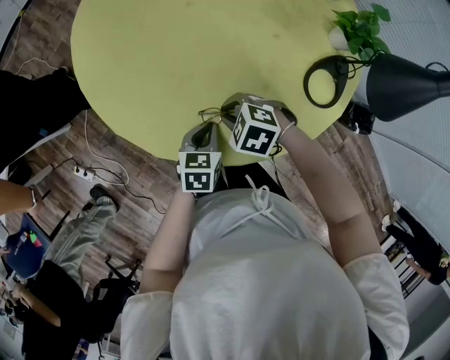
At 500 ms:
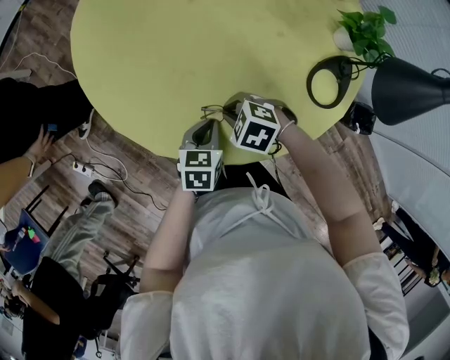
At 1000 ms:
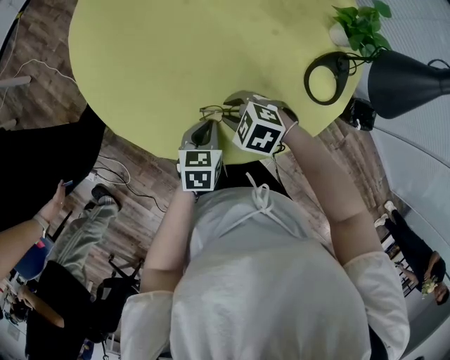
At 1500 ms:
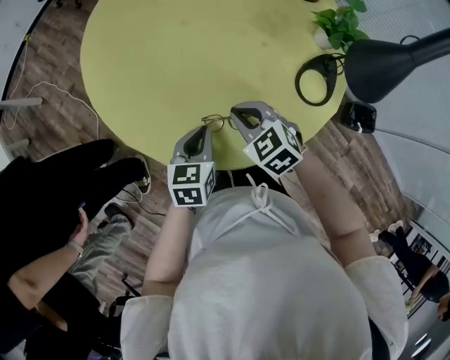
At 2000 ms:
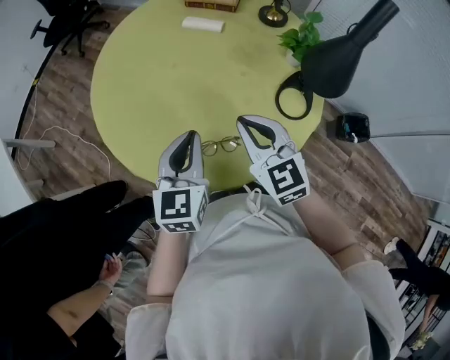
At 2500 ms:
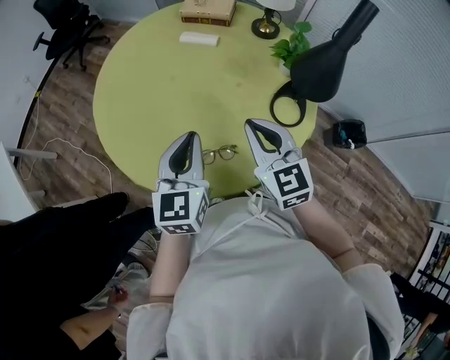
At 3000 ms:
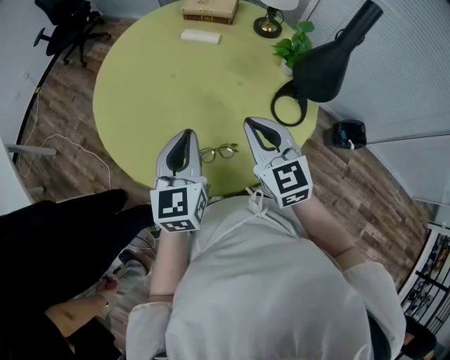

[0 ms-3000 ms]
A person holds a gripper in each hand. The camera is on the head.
0 ms to 1500 ms: The two grippers go roughly 10 cm upward. The right gripper turns by approximately 30 degrees.
1500 ms to 3000 ms: The left gripper travels upward by some 20 cm, and rotates about 30 degrees. Meanwhile the right gripper shifts about 20 cm upward and to the right, and turns by about 40 degrees.

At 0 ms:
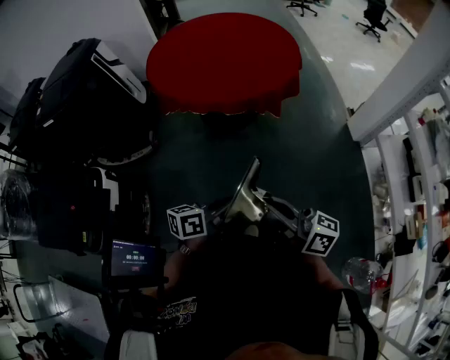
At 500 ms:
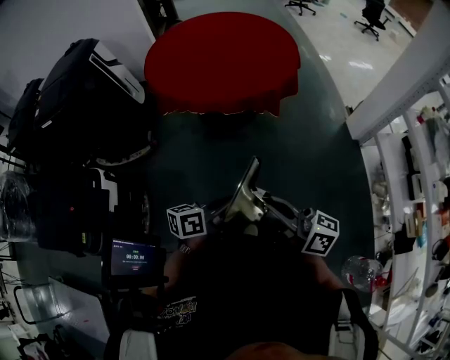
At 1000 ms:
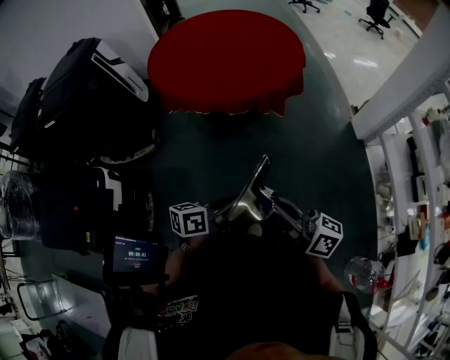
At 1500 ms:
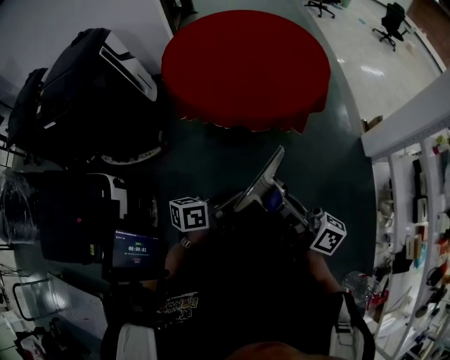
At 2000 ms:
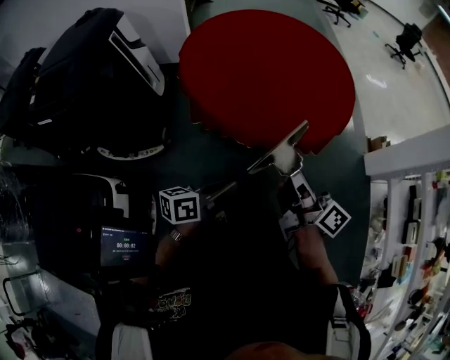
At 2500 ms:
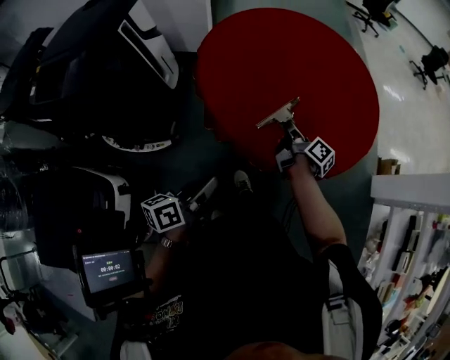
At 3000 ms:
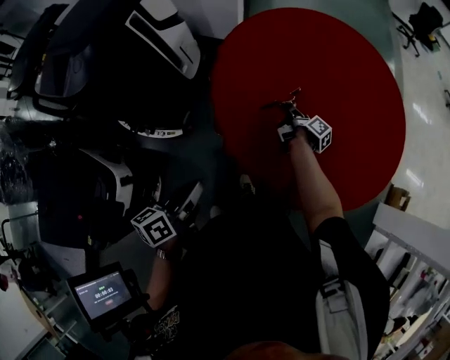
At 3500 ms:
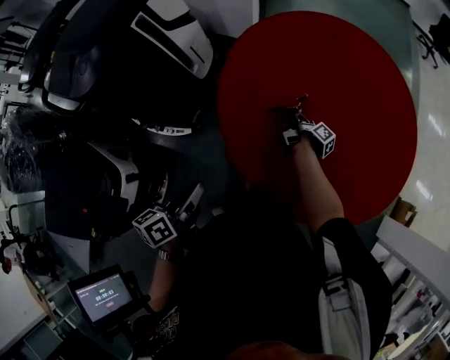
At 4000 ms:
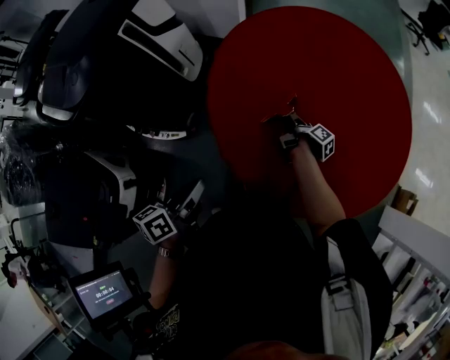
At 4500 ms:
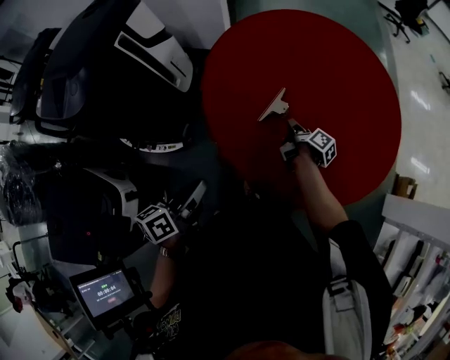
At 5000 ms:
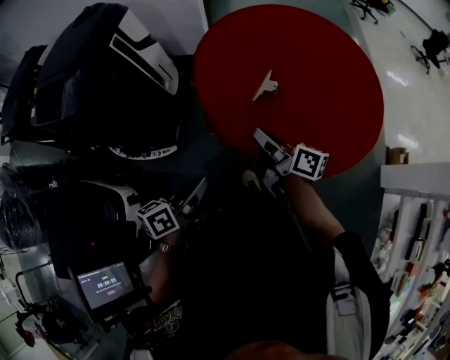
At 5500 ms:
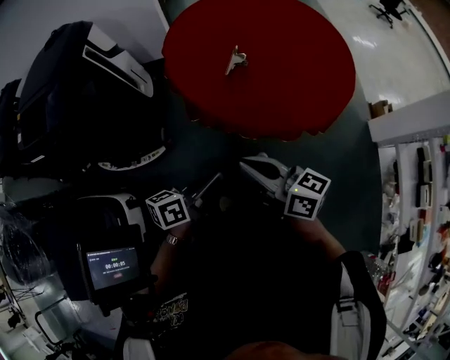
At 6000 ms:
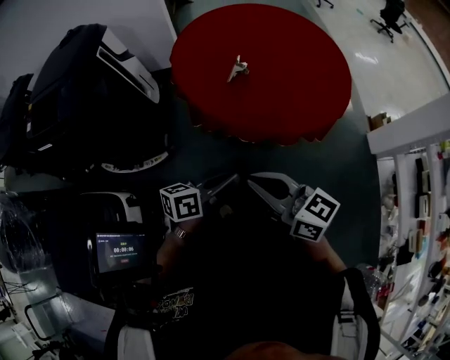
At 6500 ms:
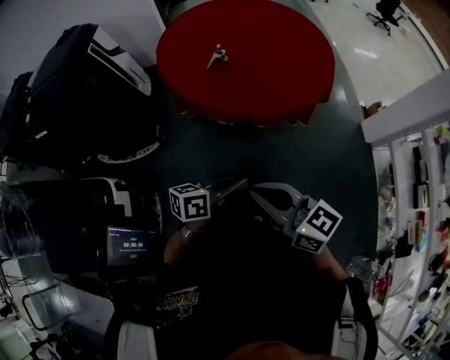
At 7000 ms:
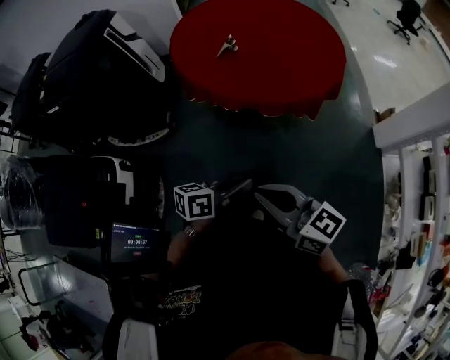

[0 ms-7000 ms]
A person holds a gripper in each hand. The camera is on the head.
0 ms to 2000 ms: The grippers both shift forward and to the left by about 35 cm.
2000 ms to 3500 ms: The right gripper shifts some 60 cm forward and downward, and tilts its fingers roughly 30 degrees downward, while the left gripper goes approximately 25 cm forward and to the left, and changes its angle by some 40 degrees.
3500 ms to 5000 ms: The left gripper moves backward, some 10 cm, and turns by about 20 degrees. The right gripper travels upward and backward by roughly 40 cm, turns by approximately 50 degrees, and opens, then closes again.
5000 ms to 7000 ms: The left gripper heads backward and to the right, covering some 35 cm, and turns by about 20 degrees; the right gripper is displaced backward by approximately 40 cm, and rotates about 30 degrees.

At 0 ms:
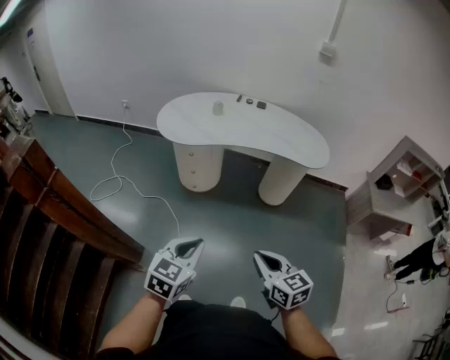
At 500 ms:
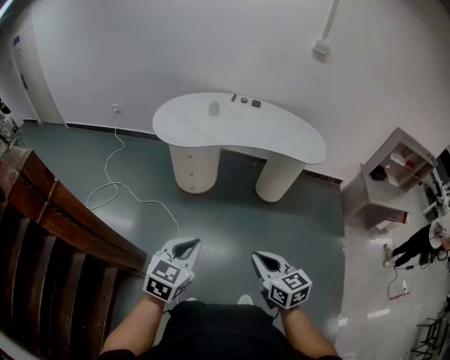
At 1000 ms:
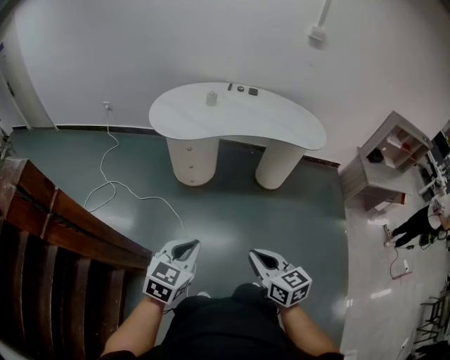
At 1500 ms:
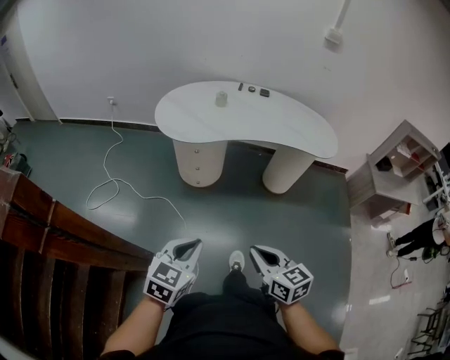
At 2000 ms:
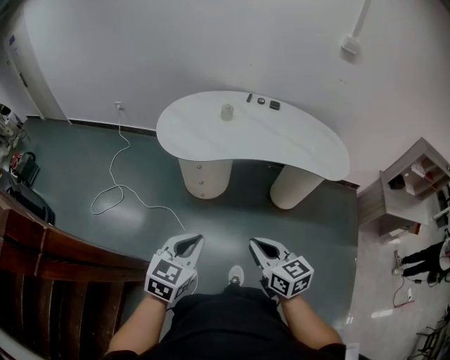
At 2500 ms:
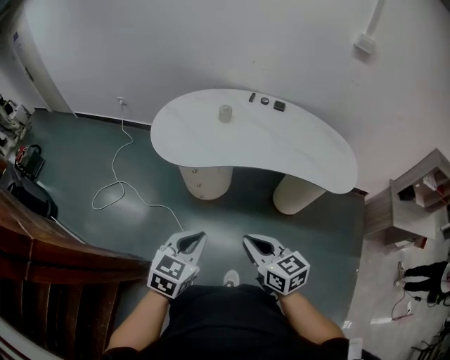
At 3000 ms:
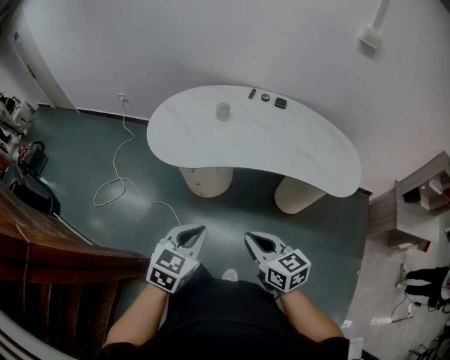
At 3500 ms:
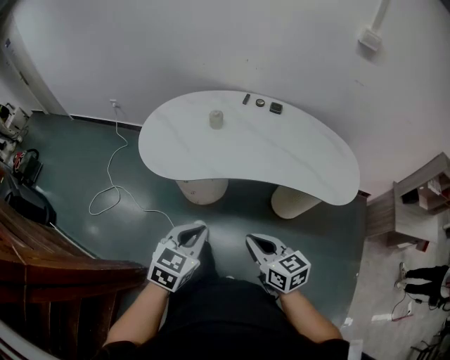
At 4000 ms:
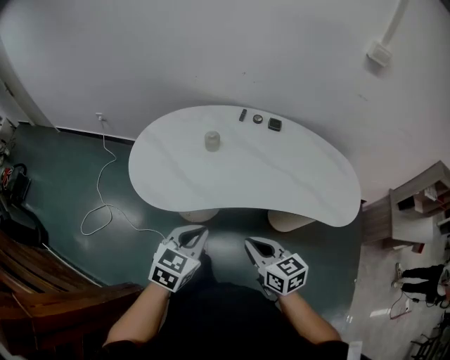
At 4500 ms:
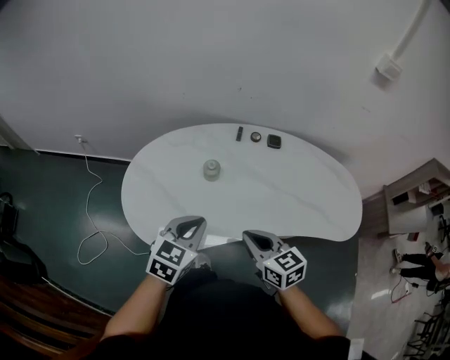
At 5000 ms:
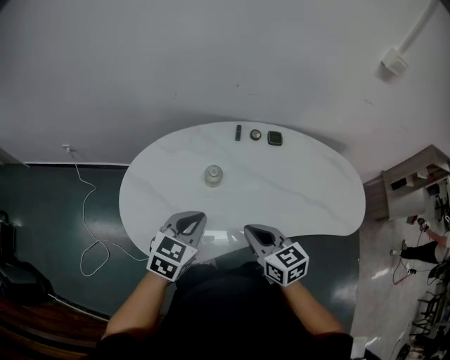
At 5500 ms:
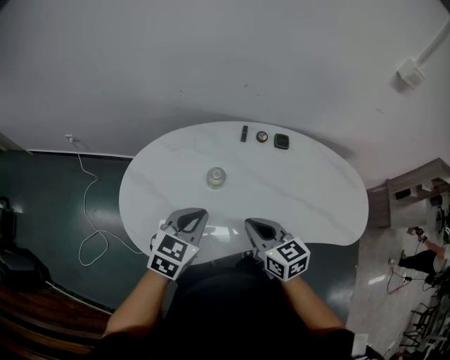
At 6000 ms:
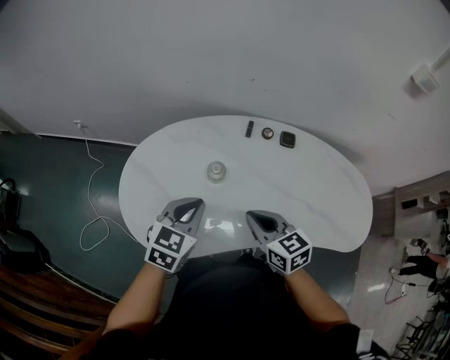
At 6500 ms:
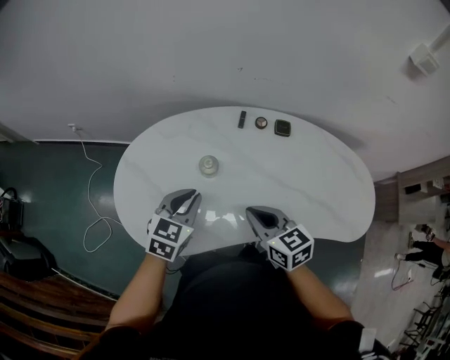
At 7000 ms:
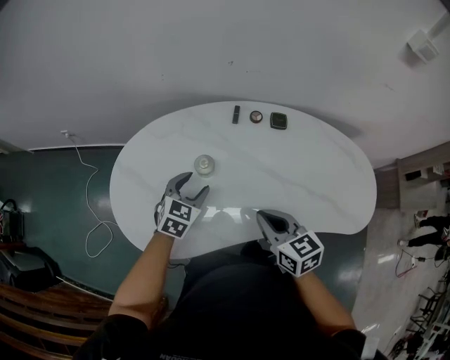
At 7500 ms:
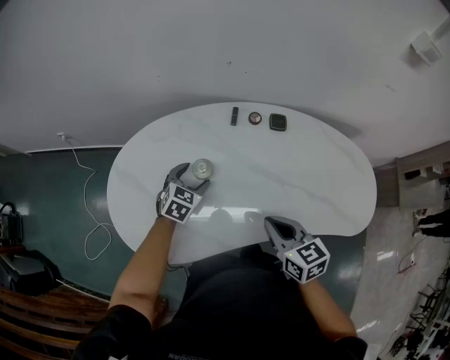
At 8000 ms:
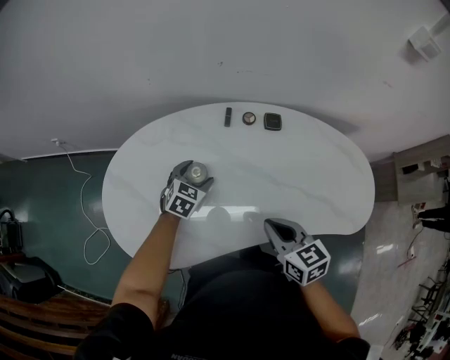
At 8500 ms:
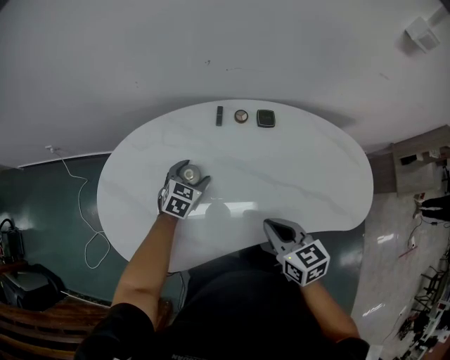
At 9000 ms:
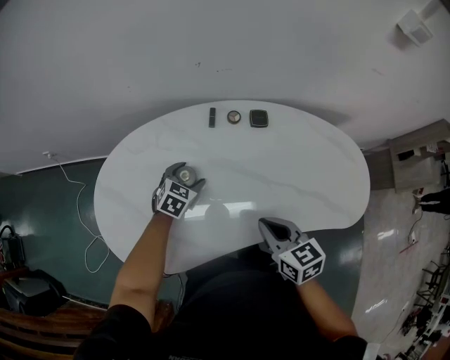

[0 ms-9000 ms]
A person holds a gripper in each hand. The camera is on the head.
0 ms to 2000 ms: Both grippers travel together forward and to the left, some 20 cm.
2000 ms to 4500 ms: Both grippers are carried forward, roughly 50 cm.
4500 ms to 7000 ms: The left gripper travels forward and downward by some 20 cm, and opens up; the right gripper travels forward and to the right by about 10 cm.
7000 ms to 9000 ms: The right gripper changes place by roughly 5 cm. The left gripper shifts approximately 10 cm forward and downward.

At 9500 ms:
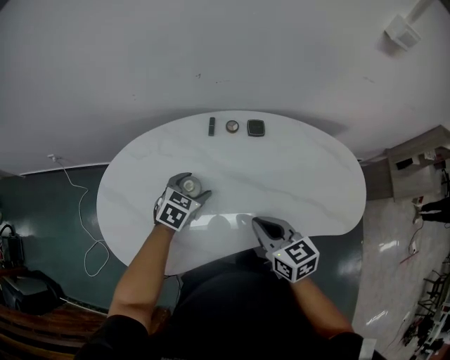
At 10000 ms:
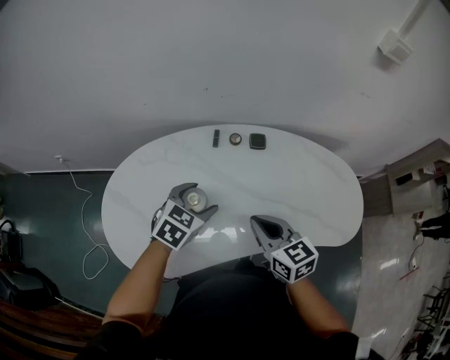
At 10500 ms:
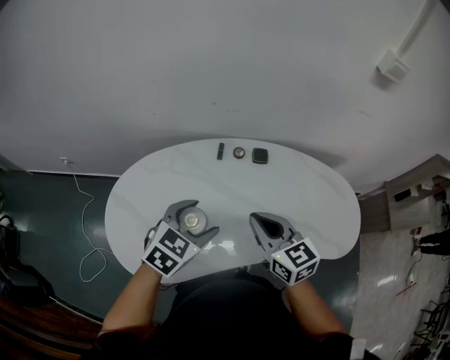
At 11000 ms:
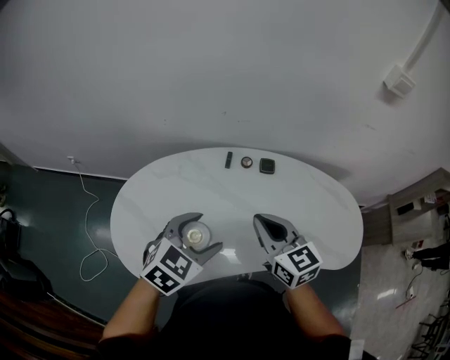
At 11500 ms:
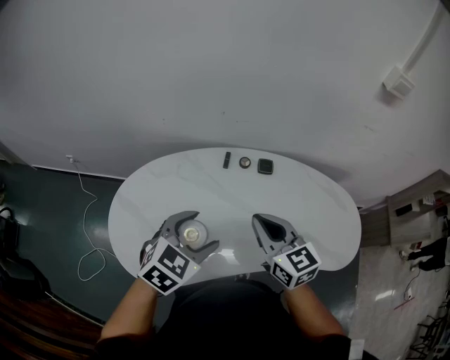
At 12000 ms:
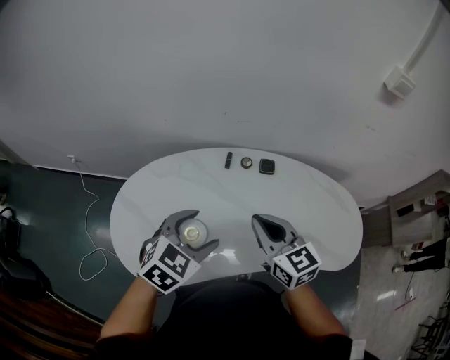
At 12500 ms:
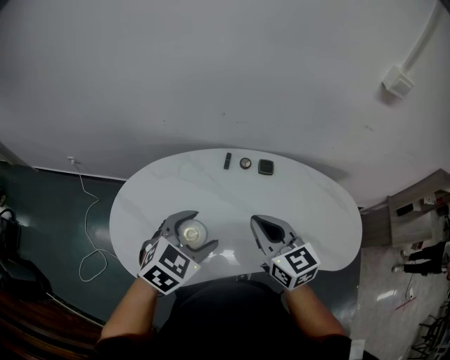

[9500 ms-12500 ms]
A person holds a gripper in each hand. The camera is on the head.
9500 ms to 11000 ms: The right gripper moves upward, roughly 10 cm; the left gripper heads upward and backward, covering some 20 cm.
11000 ms to 12500 ms: Neither gripper changes place.

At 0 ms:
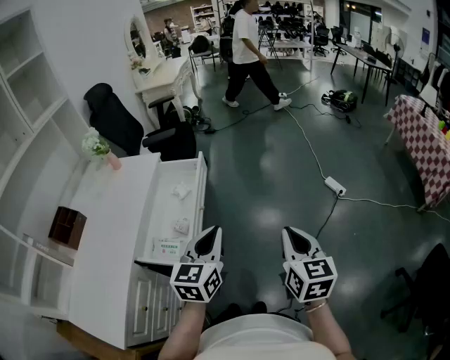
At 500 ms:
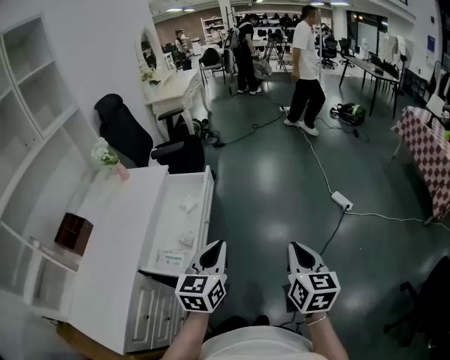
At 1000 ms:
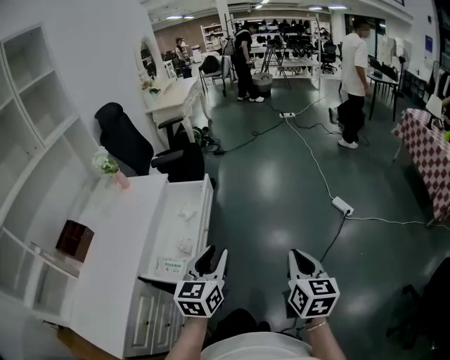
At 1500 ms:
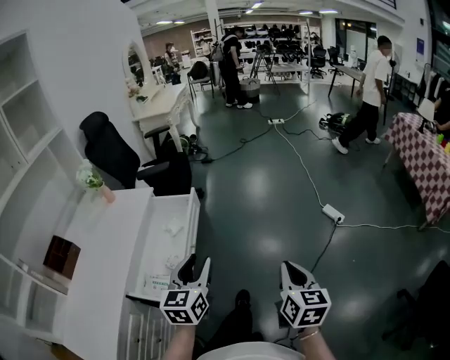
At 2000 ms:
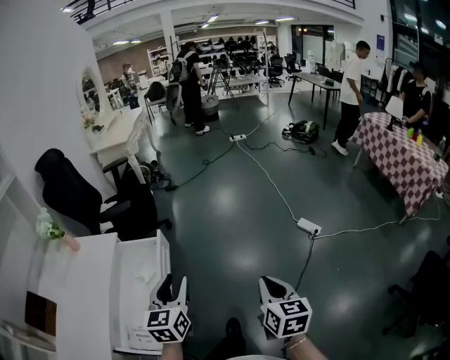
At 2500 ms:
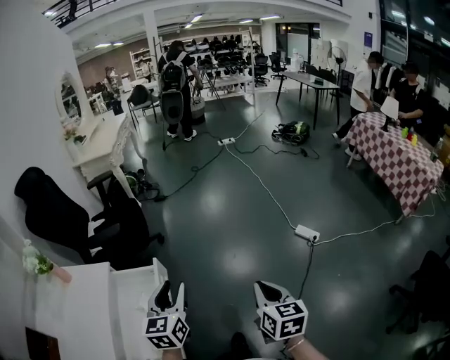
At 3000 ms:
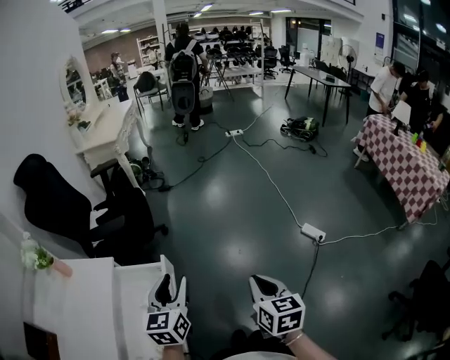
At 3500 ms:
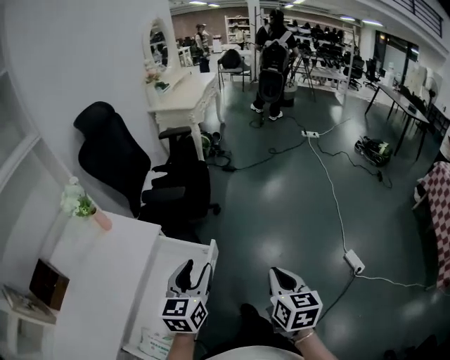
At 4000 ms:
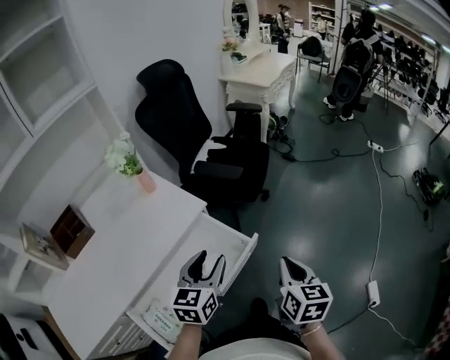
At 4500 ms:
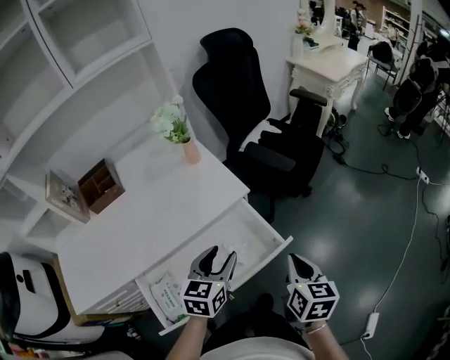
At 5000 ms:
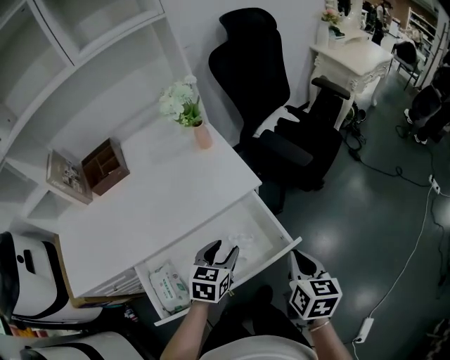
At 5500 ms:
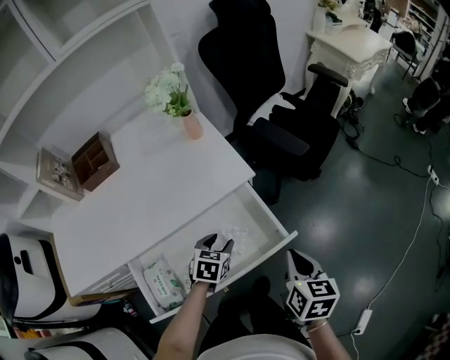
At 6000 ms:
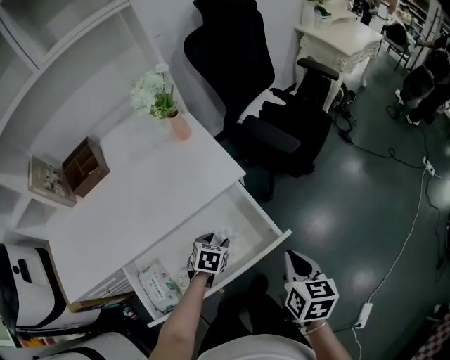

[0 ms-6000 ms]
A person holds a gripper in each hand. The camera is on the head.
0 ms to 2000 ms: Both grippers travel together forward, roughly 15 cm. The left gripper opens up.
2000 ms to 4000 ms: The right gripper moves approximately 40 cm, and turns by some 40 degrees. The left gripper ends up some 25 cm from where it was, and changes its angle by about 30 degrees.
4000 ms to 6000 ms: The left gripper is displaced downward by roughly 25 cm, and tips its fingers downward by about 40 degrees, while the right gripper heads forward and downward, covering some 10 cm, and turns by roughly 30 degrees.
